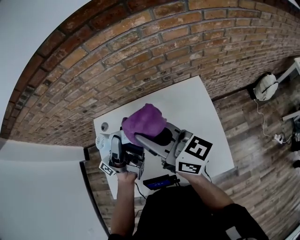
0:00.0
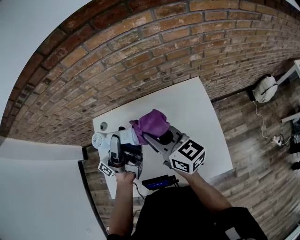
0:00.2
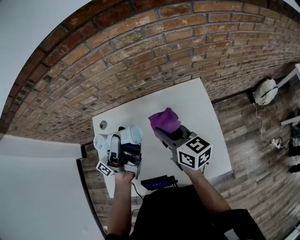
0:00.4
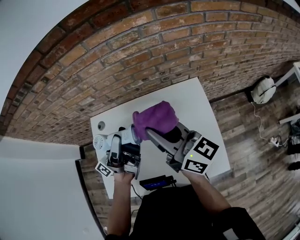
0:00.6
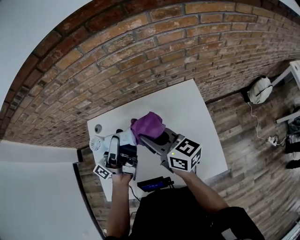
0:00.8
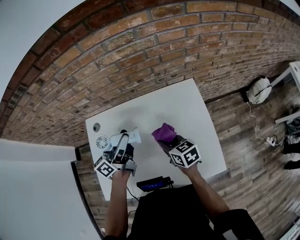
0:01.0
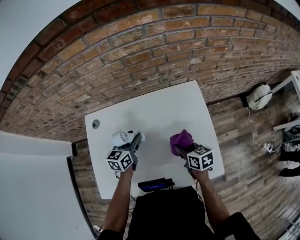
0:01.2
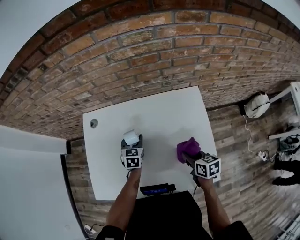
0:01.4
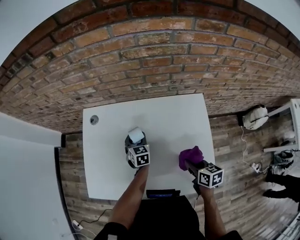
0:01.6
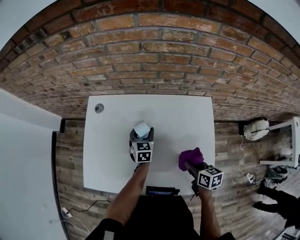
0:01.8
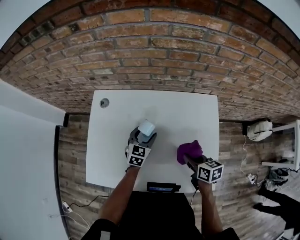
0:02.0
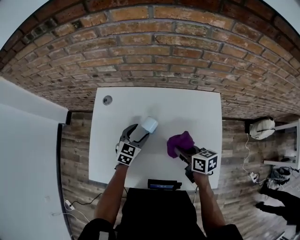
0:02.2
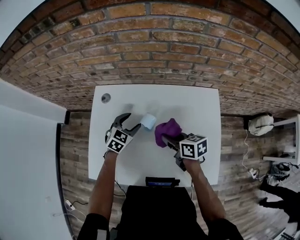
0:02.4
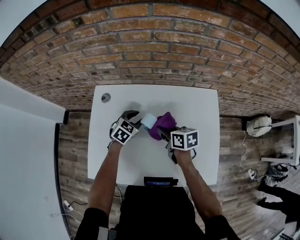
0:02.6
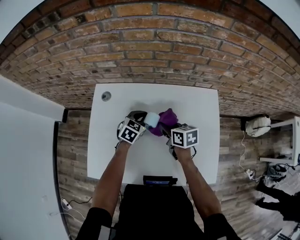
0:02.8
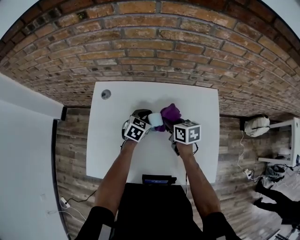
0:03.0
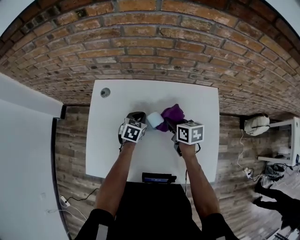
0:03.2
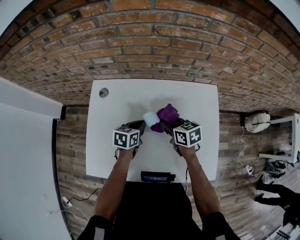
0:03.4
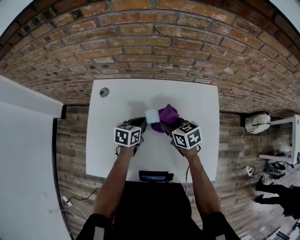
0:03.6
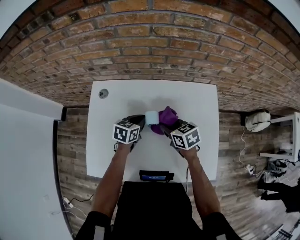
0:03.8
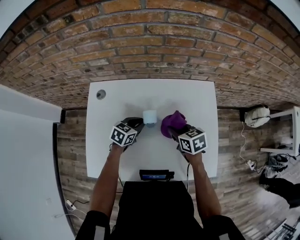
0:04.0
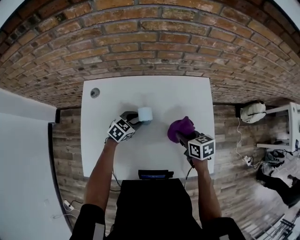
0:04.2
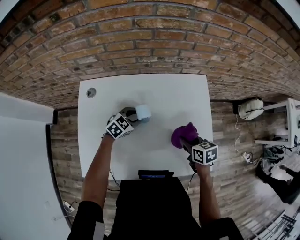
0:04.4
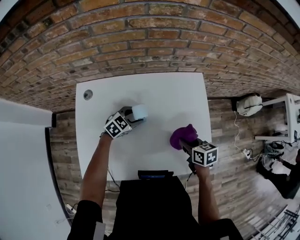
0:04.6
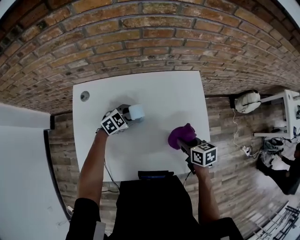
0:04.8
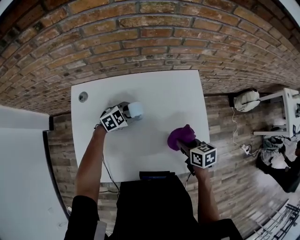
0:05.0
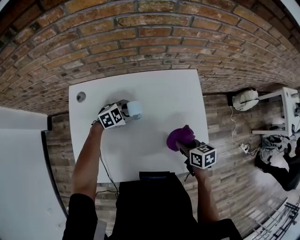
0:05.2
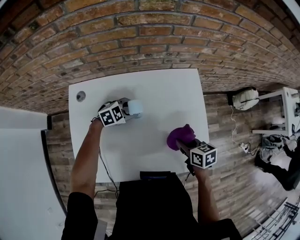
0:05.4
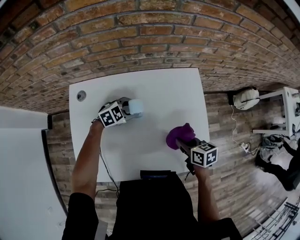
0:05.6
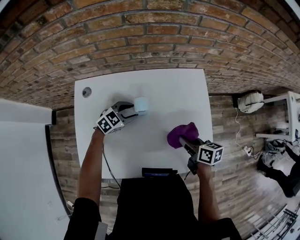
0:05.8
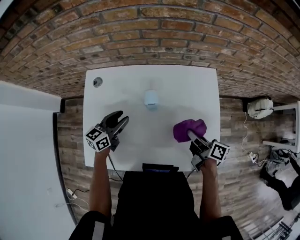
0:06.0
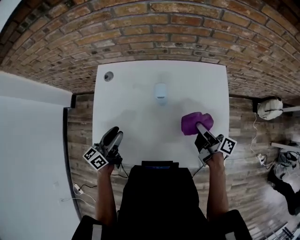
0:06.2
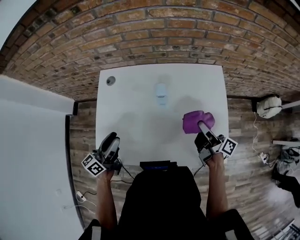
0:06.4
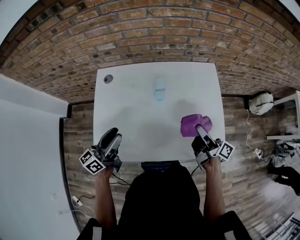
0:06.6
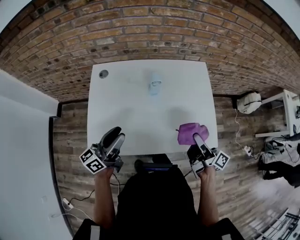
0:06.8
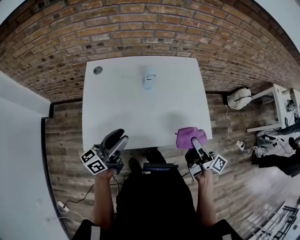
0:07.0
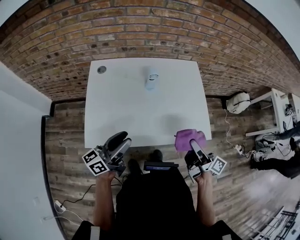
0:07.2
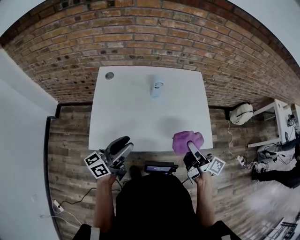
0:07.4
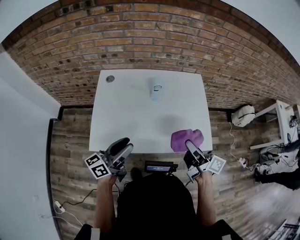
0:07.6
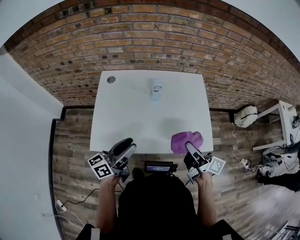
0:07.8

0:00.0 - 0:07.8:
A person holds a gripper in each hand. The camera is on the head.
0:00.0 - 0:01.6: The left gripper shifts about 30 cm downward, and angles its fingers downward, by about 80 degrees, while the right gripper swings up and down, some 30 cm each way, with 2 reversals, and tilts its fingers approximately 50 degrees downward.
0:01.6 - 0:03.2: The right gripper is displaced forward and to the left by some 20 cm. The left gripper changes its angle by roughly 20 degrees, and closes up.
0:03.2 - 0:04.6: The right gripper heads backward and to the right, covering approximately 20 cm. Meanwhile the left gripper shifts about 5 cm to the right, rotates some 40 degrees, and opens.
0:04.6 - 0:06.2: The left gripper changes place by approximately 25 cm, and angles its fingers upward, by some 30 degrees; the right gripper moves roughly 5 cm, and tilts its fingers roughly 40 degrees upward.
0:06.2 - 0:07.8: The right gripper heads backward and upward, covering roughly 25 cm. Meanwhile the left gripper travels backward, upward and to the right by approximately 20 cm, and turns by approximately 20 degrees.

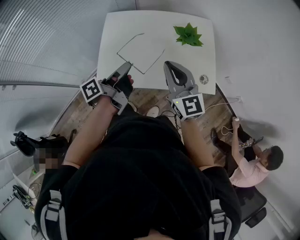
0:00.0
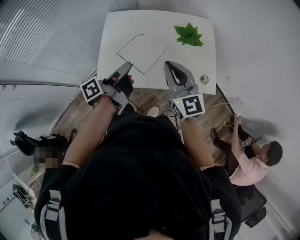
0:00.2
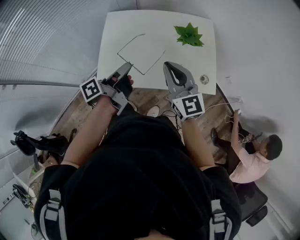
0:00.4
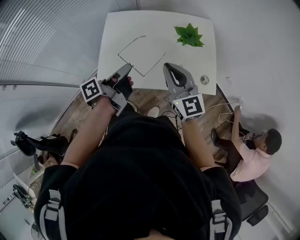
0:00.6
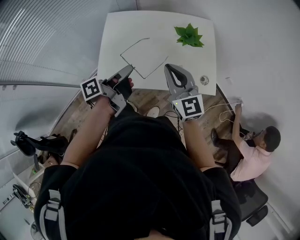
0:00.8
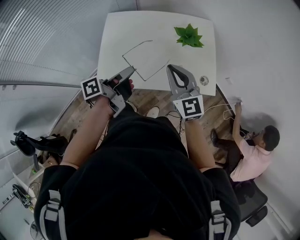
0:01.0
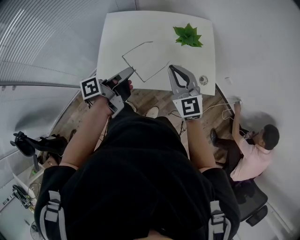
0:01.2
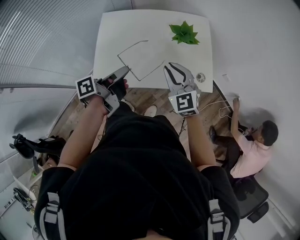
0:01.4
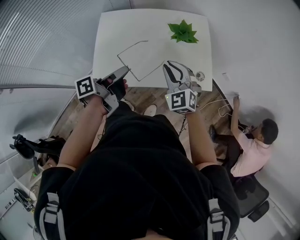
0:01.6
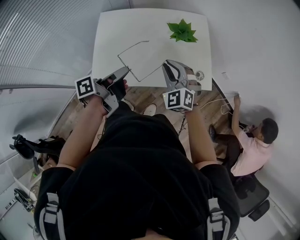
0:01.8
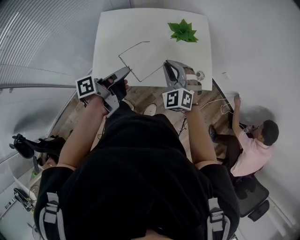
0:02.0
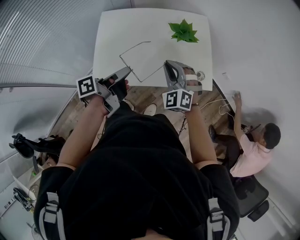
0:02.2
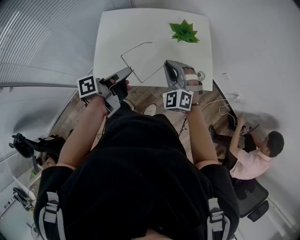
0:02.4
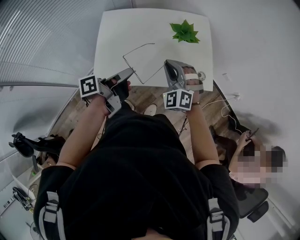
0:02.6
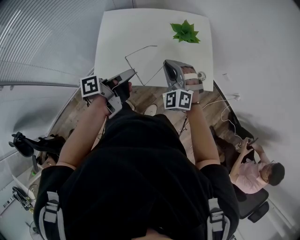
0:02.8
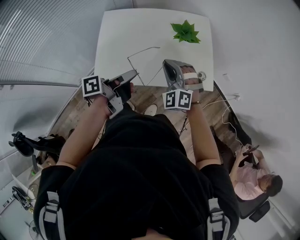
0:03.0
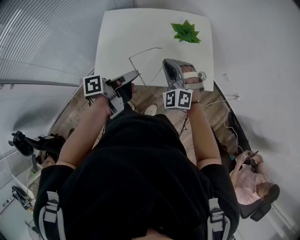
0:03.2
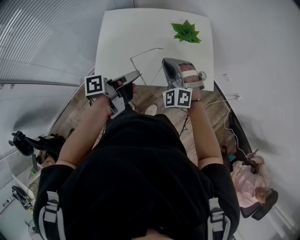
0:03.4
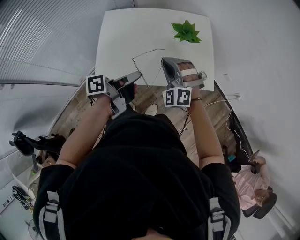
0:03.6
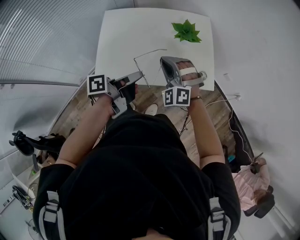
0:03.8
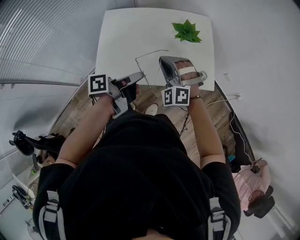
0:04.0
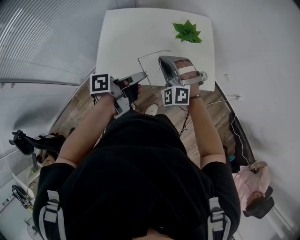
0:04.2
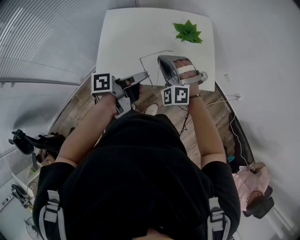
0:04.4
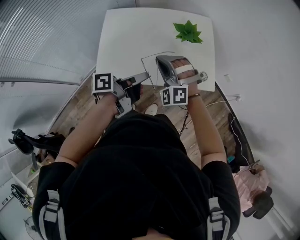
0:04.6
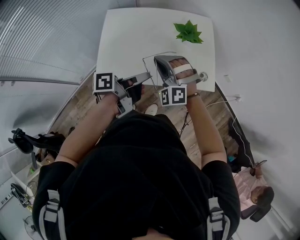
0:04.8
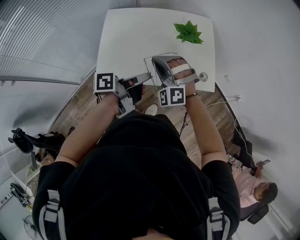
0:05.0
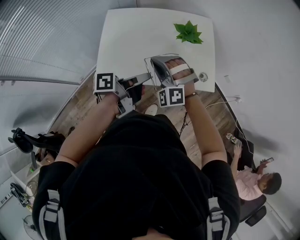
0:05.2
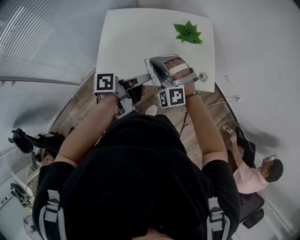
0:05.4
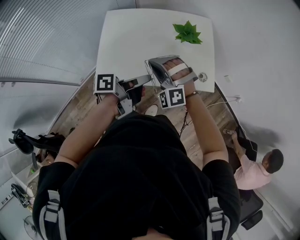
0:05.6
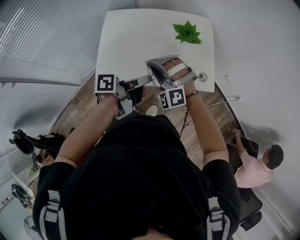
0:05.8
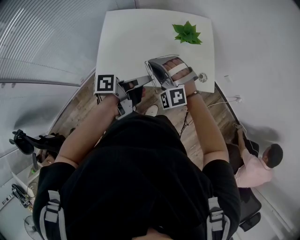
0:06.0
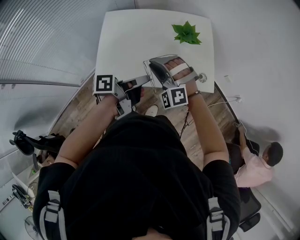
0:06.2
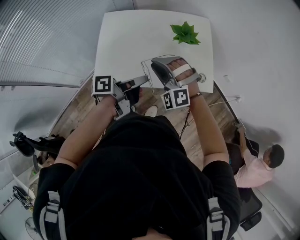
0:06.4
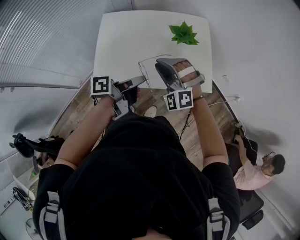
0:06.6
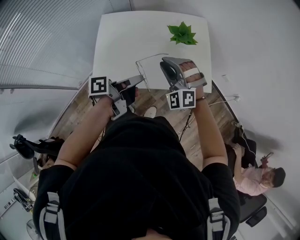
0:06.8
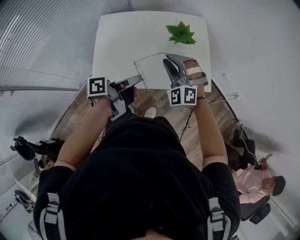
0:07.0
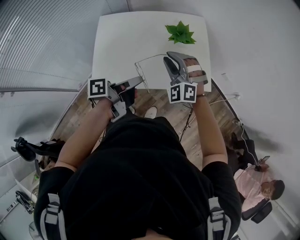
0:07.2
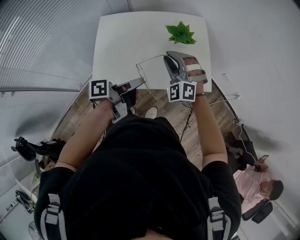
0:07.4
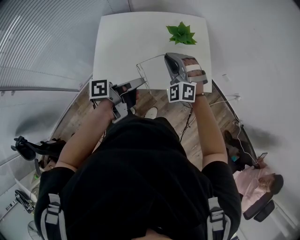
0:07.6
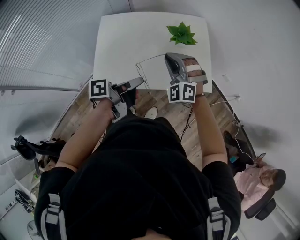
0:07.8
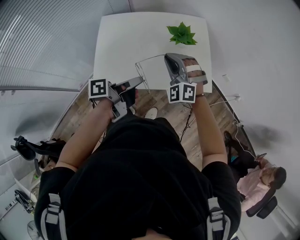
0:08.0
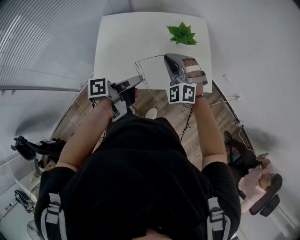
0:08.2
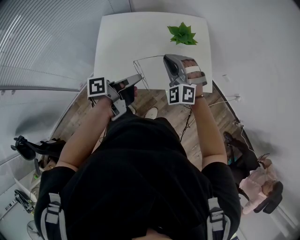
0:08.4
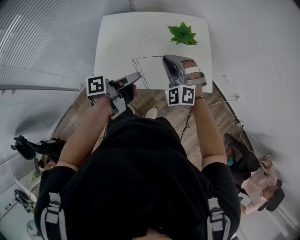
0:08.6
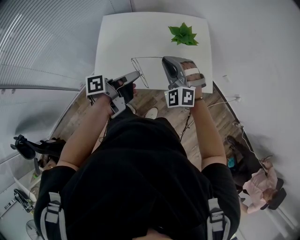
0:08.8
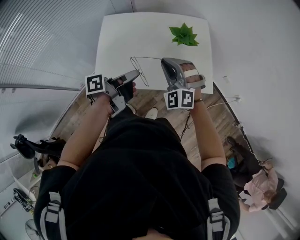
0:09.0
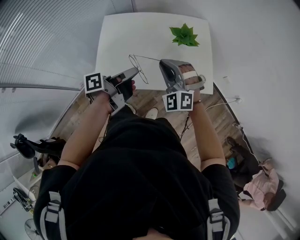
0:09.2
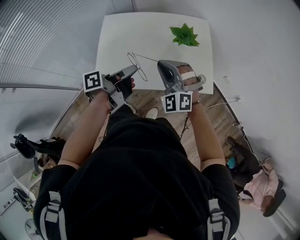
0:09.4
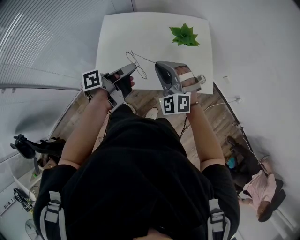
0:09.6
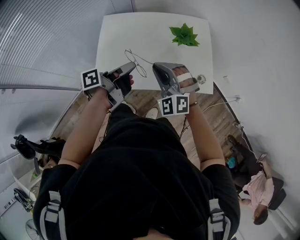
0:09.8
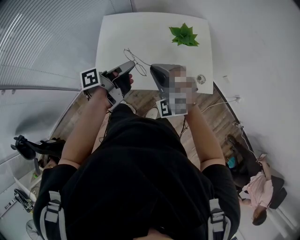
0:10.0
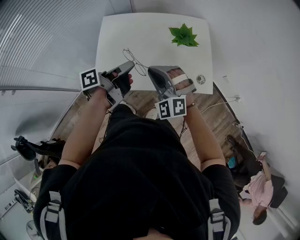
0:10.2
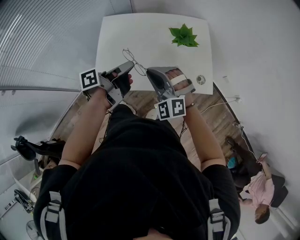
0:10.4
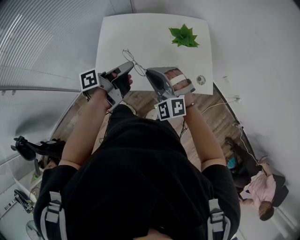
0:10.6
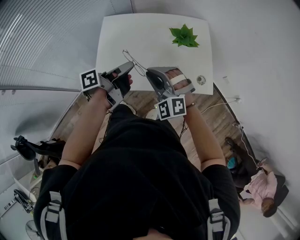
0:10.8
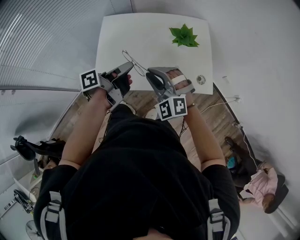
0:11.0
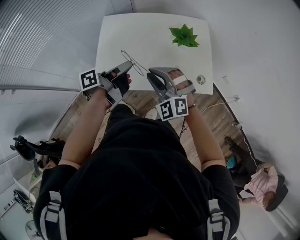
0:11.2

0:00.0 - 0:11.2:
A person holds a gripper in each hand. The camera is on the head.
0:00.0 - 0:01.6: The right gripper goes approximately 10 cm downward, and swivels some 40 degrees.
0:01.6 - 0:03.2: The right gripper swivels some 30 degrees.
0:03.2 - 0:04.8: The right gripper moves some 5 cm.
0:06.4 - 0:08.0: The right gripper ends up roughly 10 cm from where it was.
0:08.0 - 0:09.6: The right gripper changes place by some 5 cm.

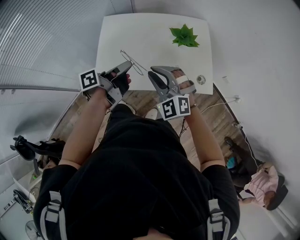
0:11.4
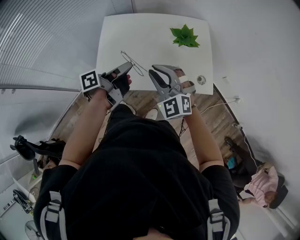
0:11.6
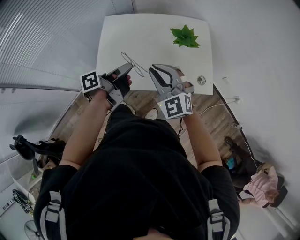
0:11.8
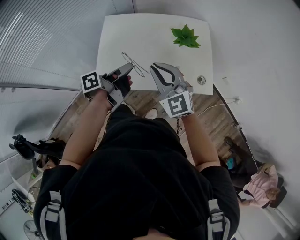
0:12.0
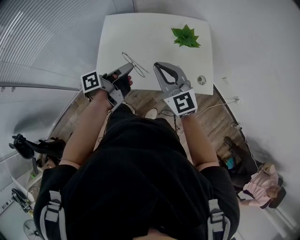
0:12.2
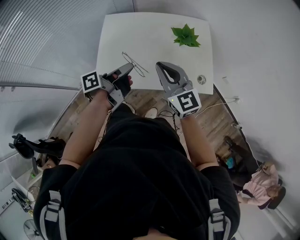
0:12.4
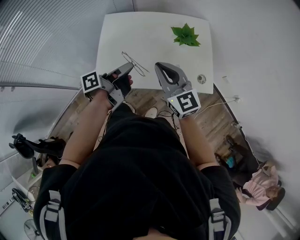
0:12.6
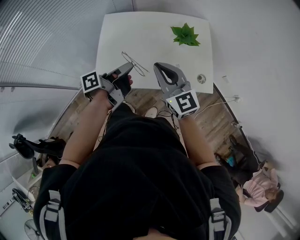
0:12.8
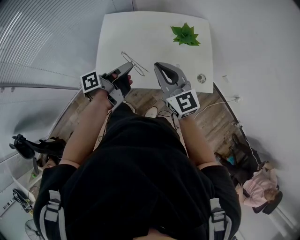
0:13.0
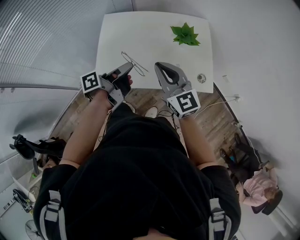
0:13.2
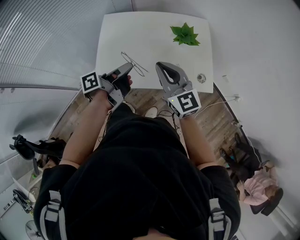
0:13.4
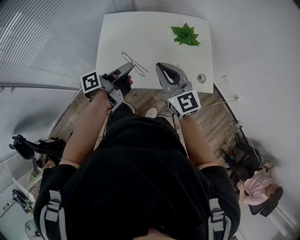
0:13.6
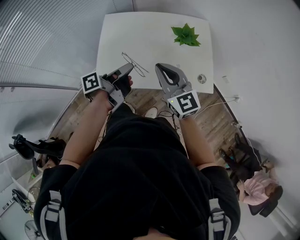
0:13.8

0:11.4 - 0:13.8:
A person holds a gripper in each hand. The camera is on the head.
0:11.4 - 0:12.6: The right gripper shifts by roughly 5 cm, and rolls clockwise, seen from behind, by about 40 degrees.

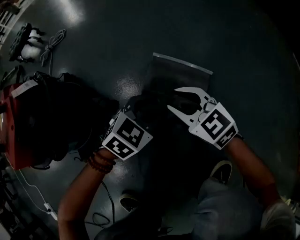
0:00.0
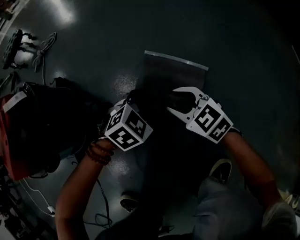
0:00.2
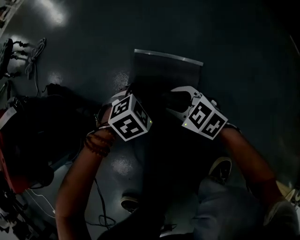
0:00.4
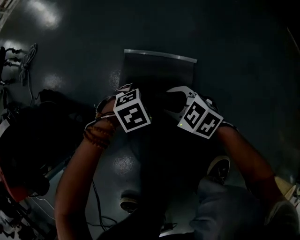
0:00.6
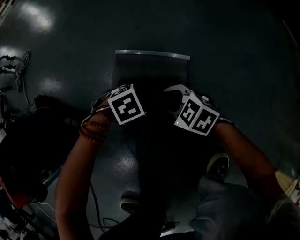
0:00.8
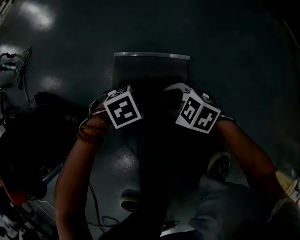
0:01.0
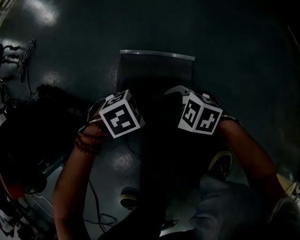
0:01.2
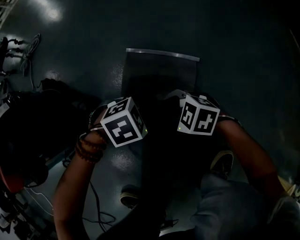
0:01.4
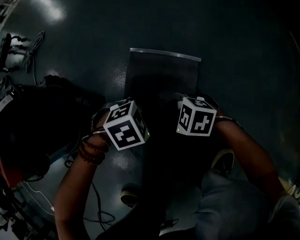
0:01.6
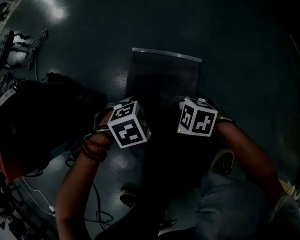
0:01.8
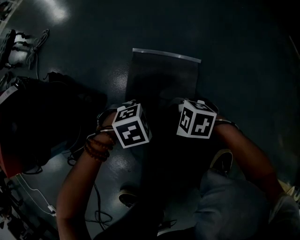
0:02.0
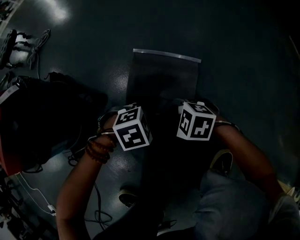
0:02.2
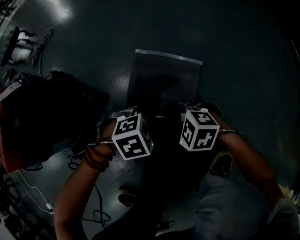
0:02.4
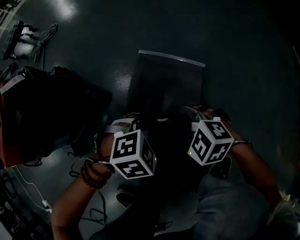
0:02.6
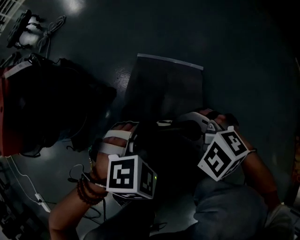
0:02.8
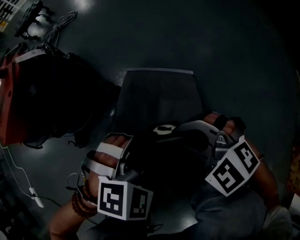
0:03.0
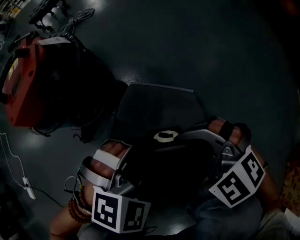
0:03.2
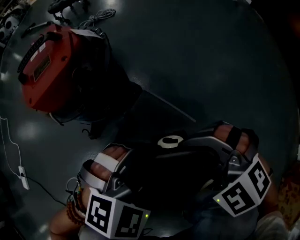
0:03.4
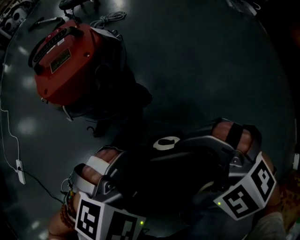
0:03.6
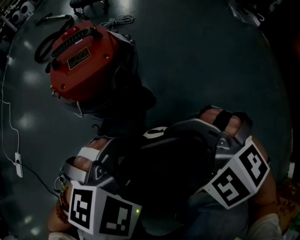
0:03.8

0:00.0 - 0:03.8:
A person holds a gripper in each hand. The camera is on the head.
0:00.0 - 0:01.2: Both grippers move downward, roughly 10 cm. The right gripper changes its angle by some 30 degrees. The left gripper swivels roughly 40 degrees, and closes its fingers.
0:01.2 - 0:02.6: Both grippers move upward, approximately 10 cm. The right gripper closes up.
0:02.6 - 0:03.8: Both grippers move upward, roughly 30 cm. The left gripper changes its angle by about 40 degrees, while the right gripper rotates around the line of its fingers by some 40 degrees, counterclockwise from behind.
